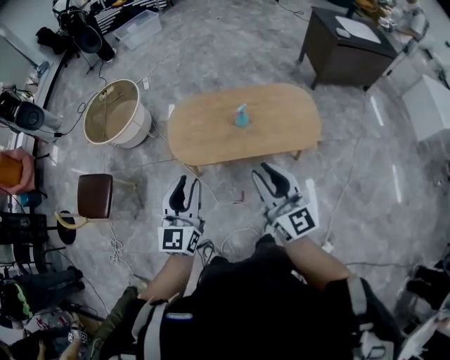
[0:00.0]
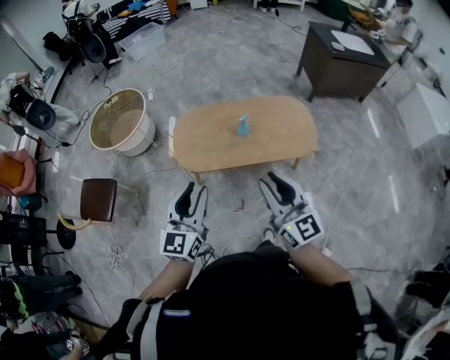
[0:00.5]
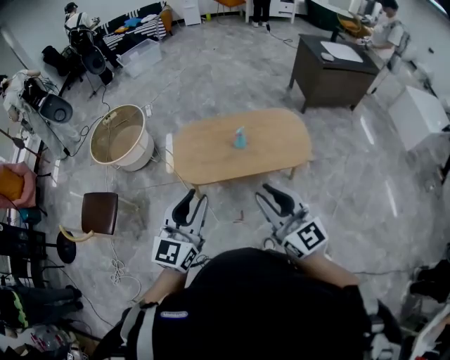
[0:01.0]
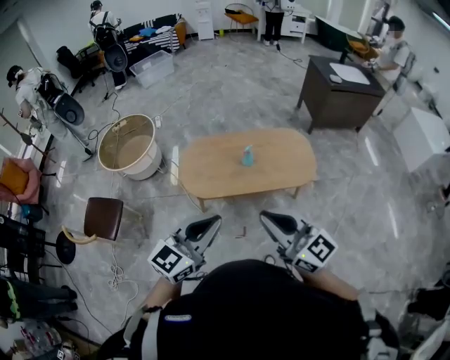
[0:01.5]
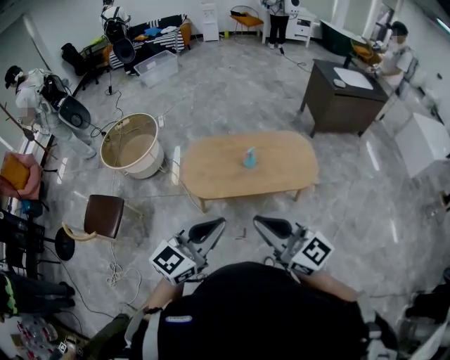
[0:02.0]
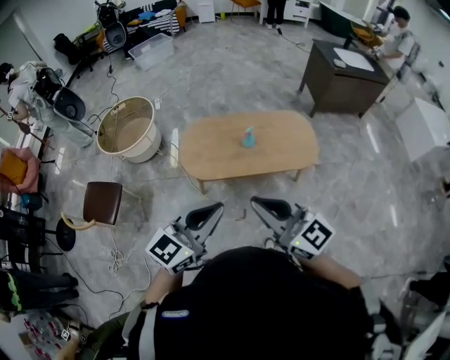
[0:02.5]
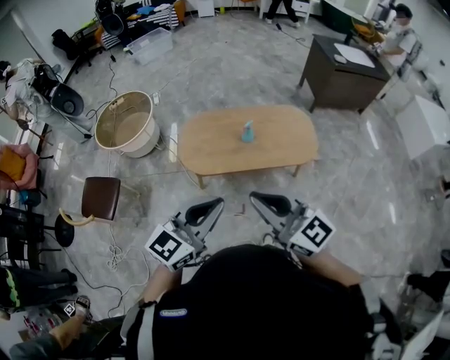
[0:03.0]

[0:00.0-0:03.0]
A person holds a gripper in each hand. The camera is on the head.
0:00.0 to 0:01.5: The left gripper heads upward and backward, covering about 15 cm, changes its angle by roughly 30 degrees, and closes, while the right gripper travels backward, upward and to the left by about 15 cm, and closes up.
0:01.5 to 0:03.0: The grippers make only small movements.

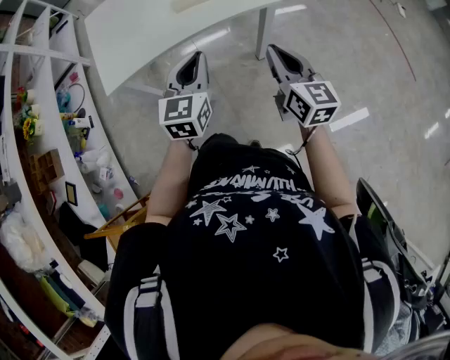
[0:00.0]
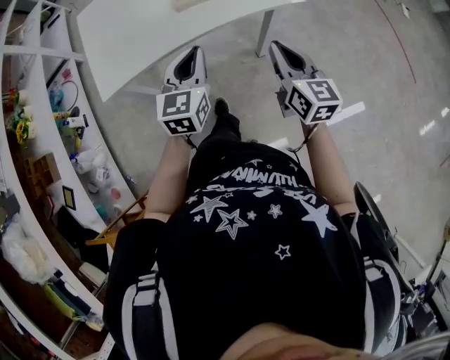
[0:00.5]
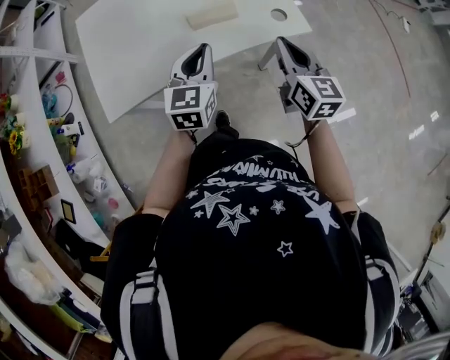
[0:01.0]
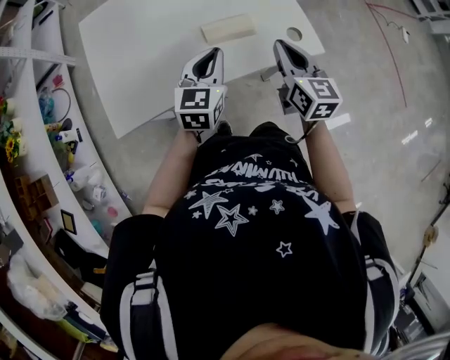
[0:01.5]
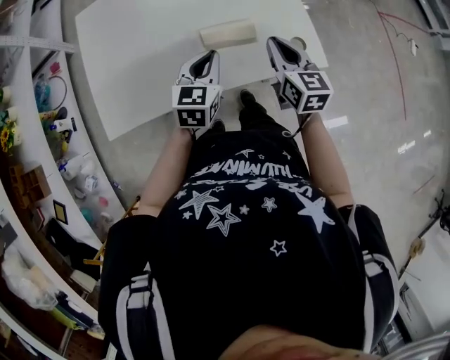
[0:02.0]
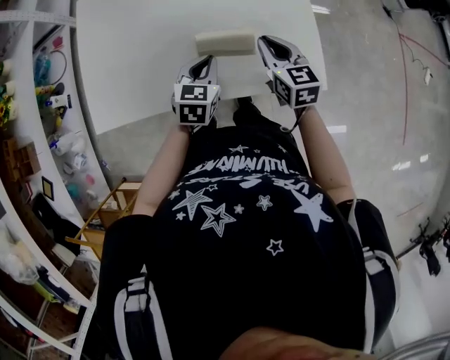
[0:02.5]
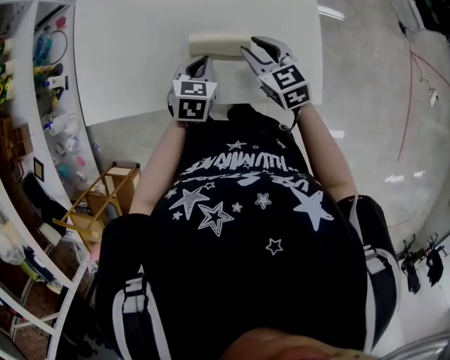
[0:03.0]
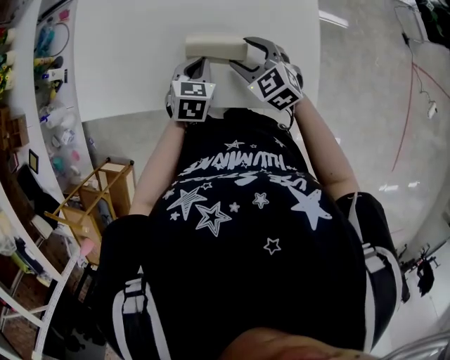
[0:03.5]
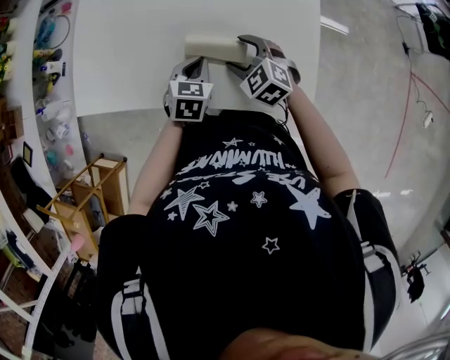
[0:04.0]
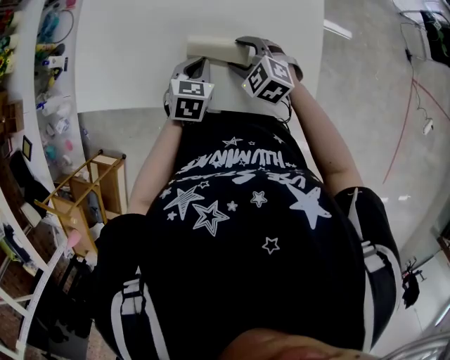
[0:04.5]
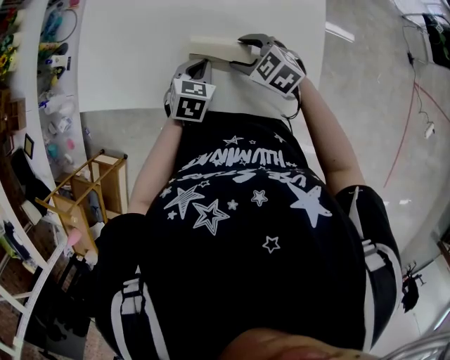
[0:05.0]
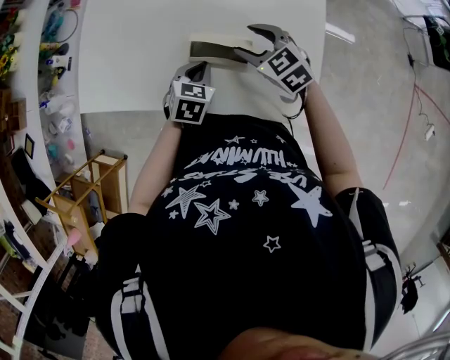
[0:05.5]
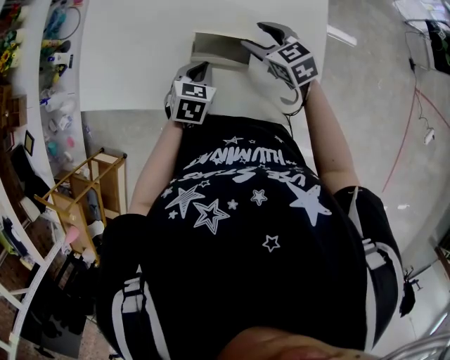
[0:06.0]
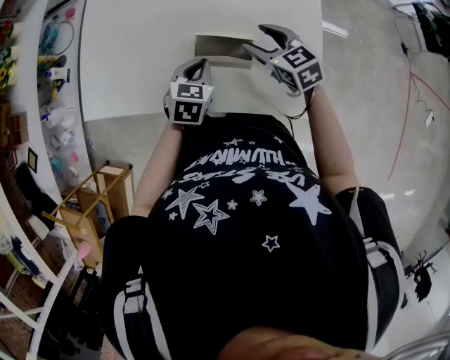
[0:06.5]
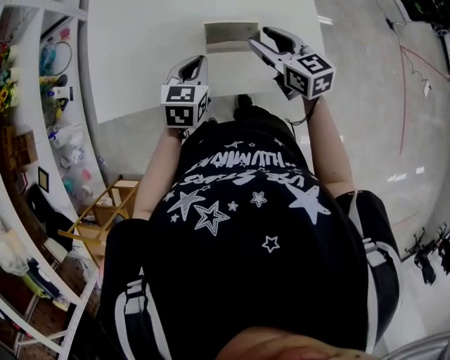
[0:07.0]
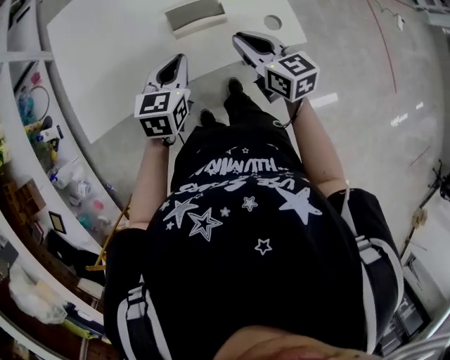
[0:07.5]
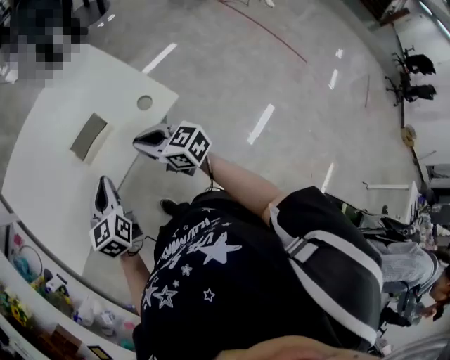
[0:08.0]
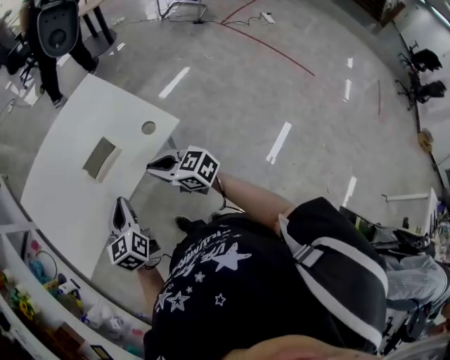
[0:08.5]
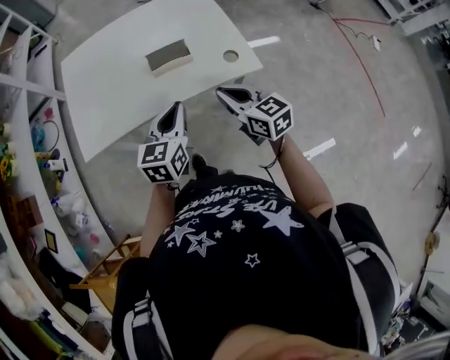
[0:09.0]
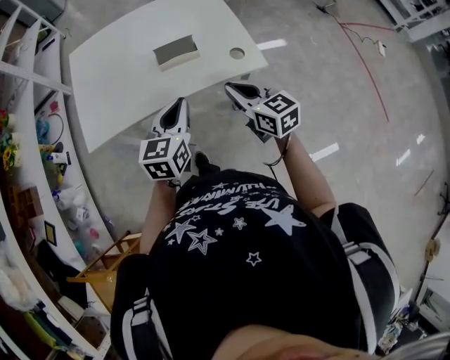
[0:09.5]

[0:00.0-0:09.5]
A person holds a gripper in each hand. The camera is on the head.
0:00.0 to 0:02.0: Both grippers move forward, about 30 cm.
0:02.0 to 0:04.0: The two grippers go roughly 10 cm downward. The right gripper changes its angle by approximately 70 degrees, and opens its fingers; the left gripper rotates roughly 30 degrees.
0:04.0 to 0:05.5: The right gripper moves about 5 cm.
0:05.5 to 0:07.5: The left gripper ends up approximately 15 cm from where it was, and turns by some 30 degrees. Meanwhile the right gripper shifts by roughly 15 cm, rotates some 50 degrees, and closes.
0:07.5 to 0:09.5: The left gripper shifts about 20 cm backward, to the right and upward. The right gripper moves backward and to the right, approximately 15 cm.

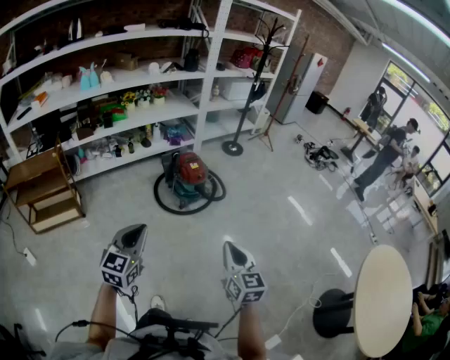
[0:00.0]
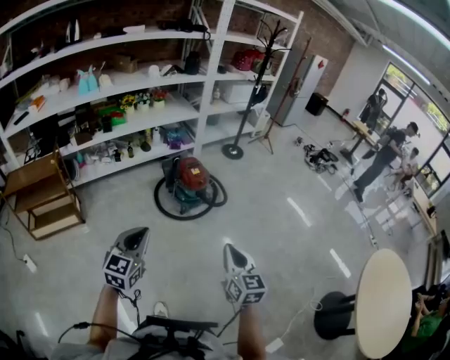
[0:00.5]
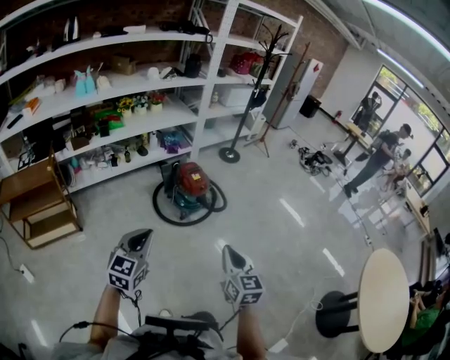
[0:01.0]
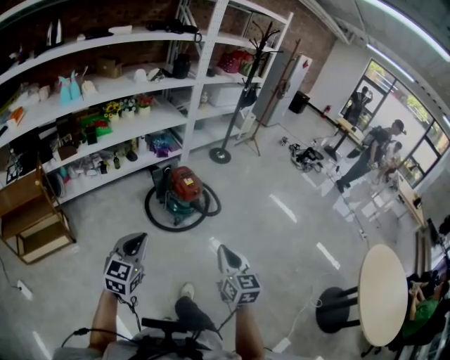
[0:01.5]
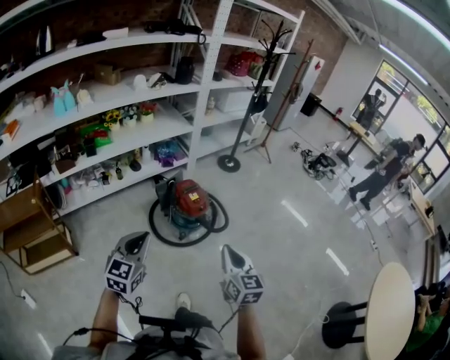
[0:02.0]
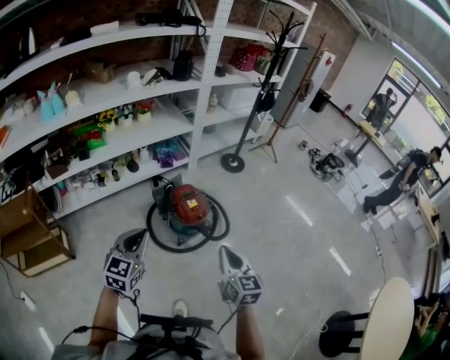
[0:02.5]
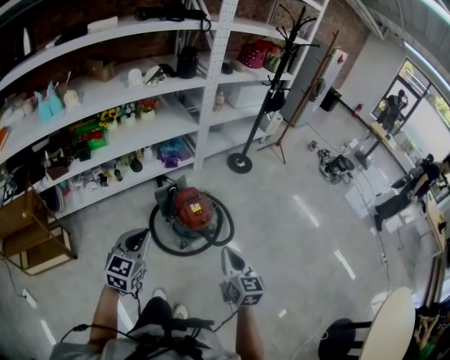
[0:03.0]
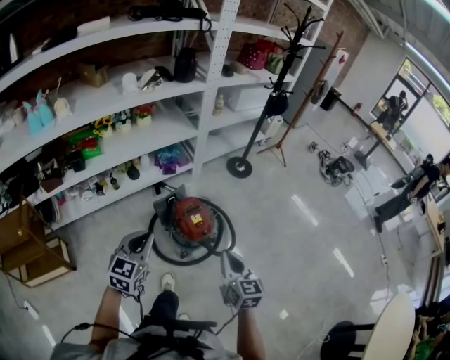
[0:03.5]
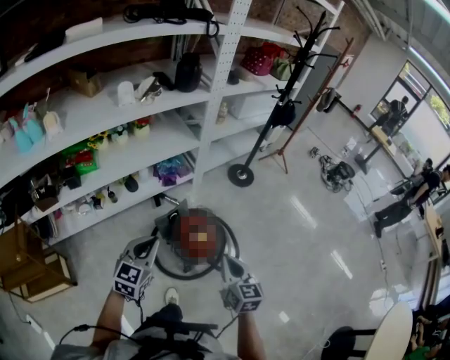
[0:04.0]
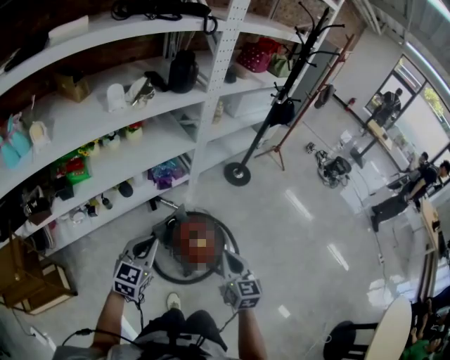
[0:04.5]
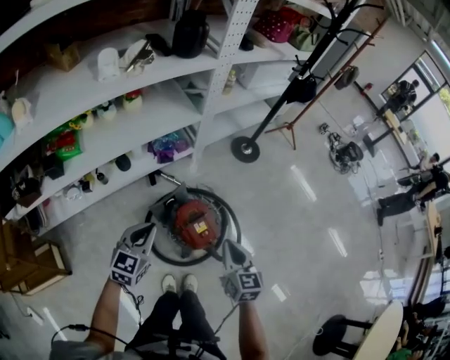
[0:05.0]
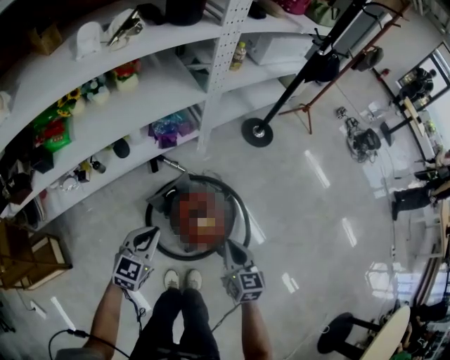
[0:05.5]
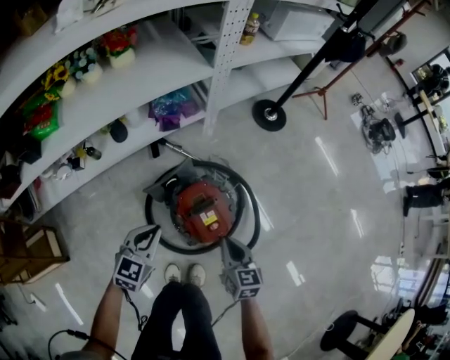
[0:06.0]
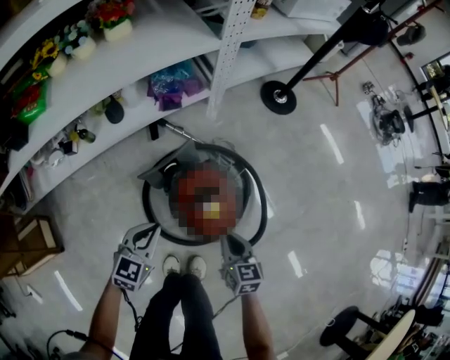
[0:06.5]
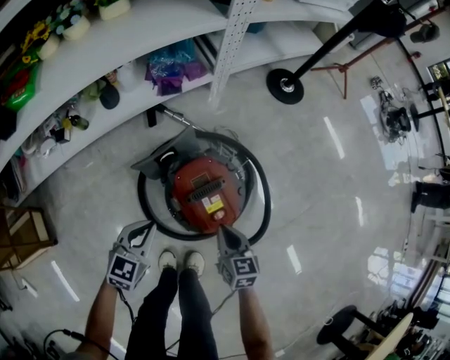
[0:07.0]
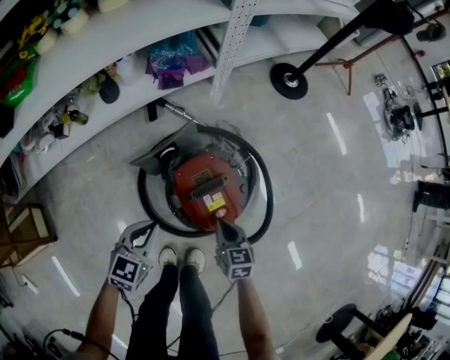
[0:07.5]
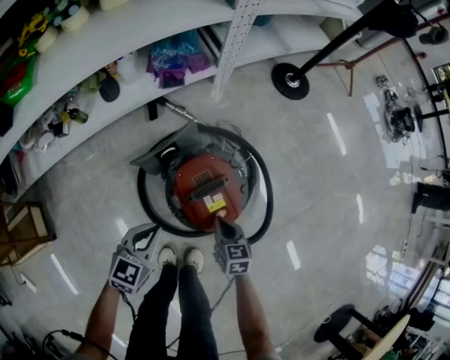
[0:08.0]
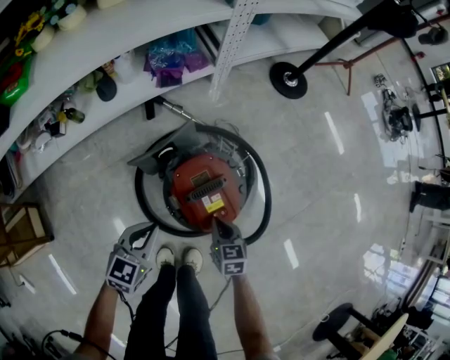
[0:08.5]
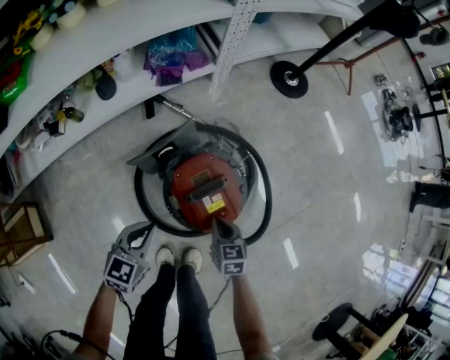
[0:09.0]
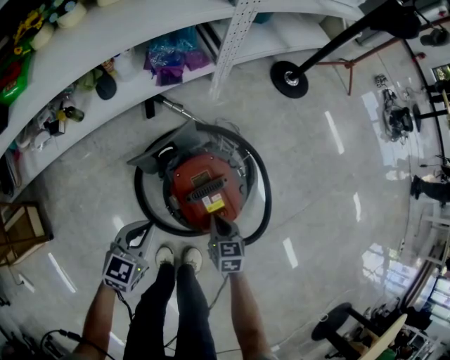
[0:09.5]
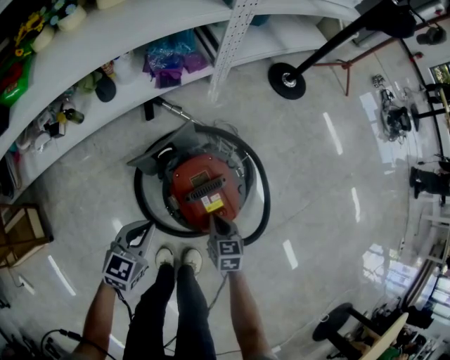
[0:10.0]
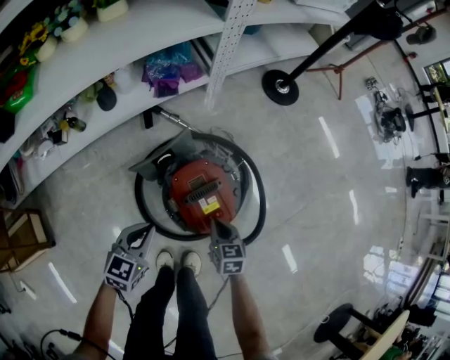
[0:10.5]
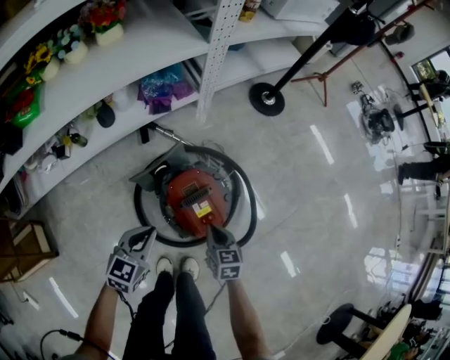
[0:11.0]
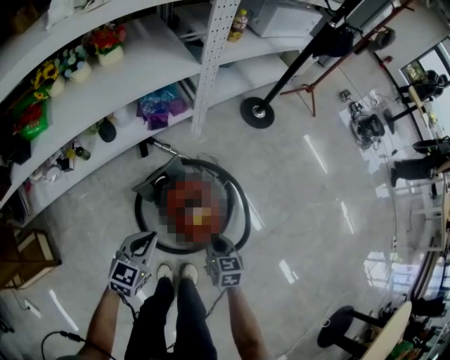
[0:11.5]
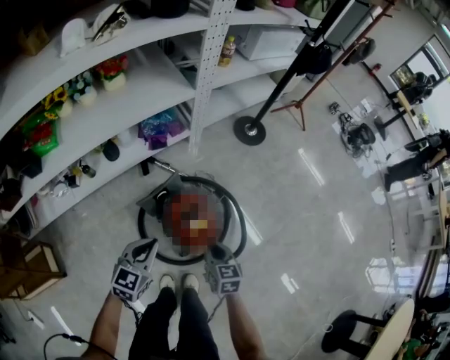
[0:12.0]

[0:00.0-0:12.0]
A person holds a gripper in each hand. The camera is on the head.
0:00.0 to 0:02.0: Both grippers move forward, roughly 30 cm.
0:02.0 to 0:04.0: Both grippers move forward, about 40 cm.
0:04.0 to 0:06.0: The two grippers go some 35 cm downward and forward.
0:06.0 to 0:08.0: The grippers both shift downward by about 20 cm.
0:08.0 to 0:10.0: The grippers make only small movements.
0:10.0 to 0:12.0: Both grippers travel together upward, some 25 cm.

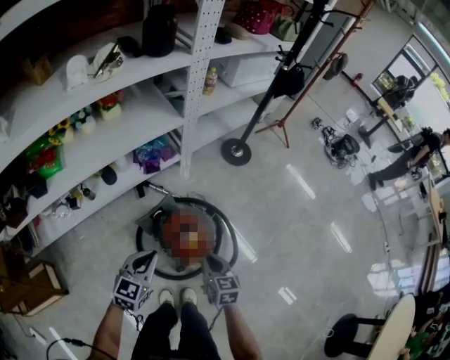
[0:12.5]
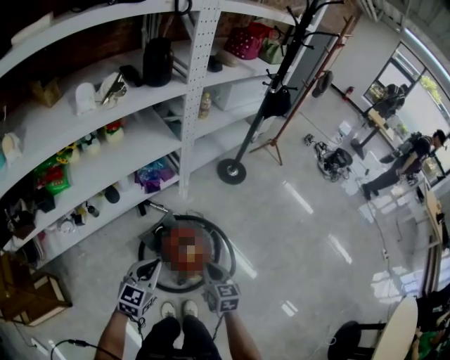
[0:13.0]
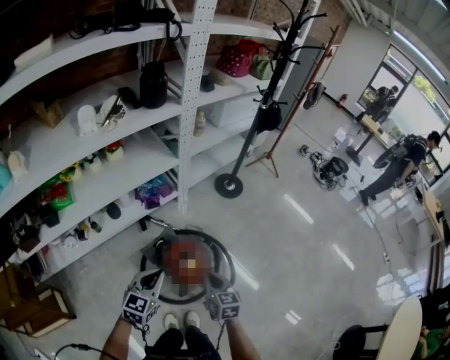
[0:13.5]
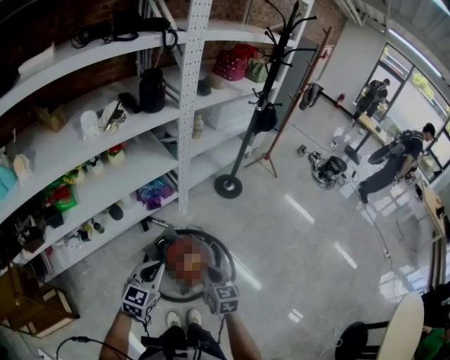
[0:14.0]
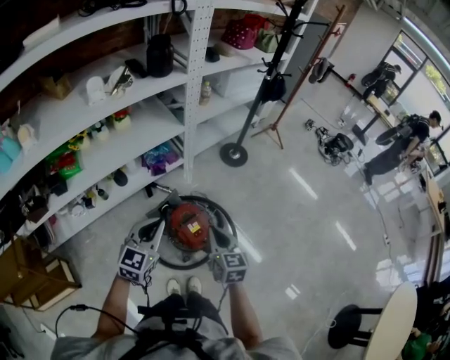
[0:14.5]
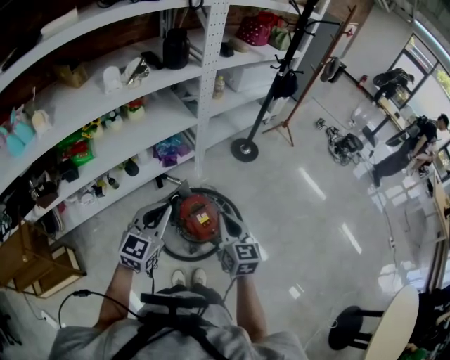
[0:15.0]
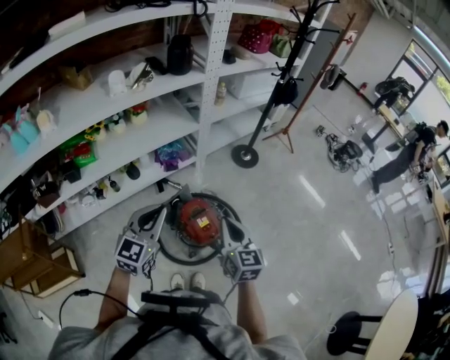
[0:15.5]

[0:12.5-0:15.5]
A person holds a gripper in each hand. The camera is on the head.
0:12.5 to 0:14.0: The grippers both shift upward by about 15 cm.
0:14.0 to 0:15.5: The grippers both shift upward by approximately 10 cm.
